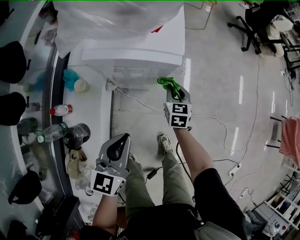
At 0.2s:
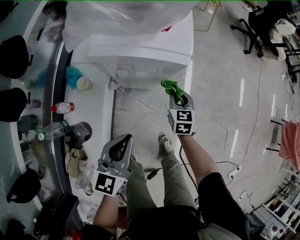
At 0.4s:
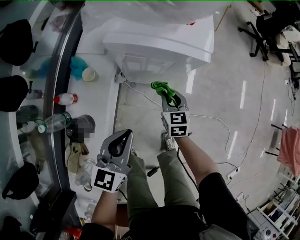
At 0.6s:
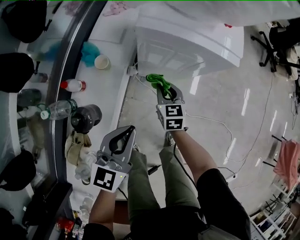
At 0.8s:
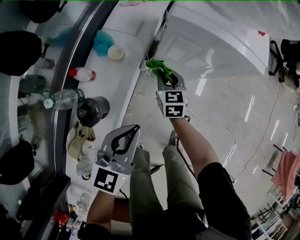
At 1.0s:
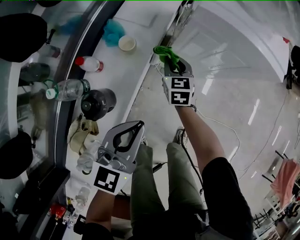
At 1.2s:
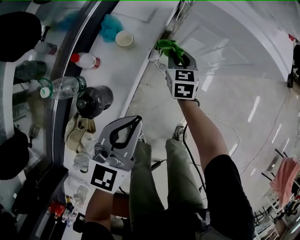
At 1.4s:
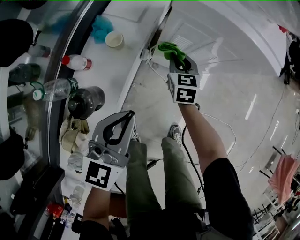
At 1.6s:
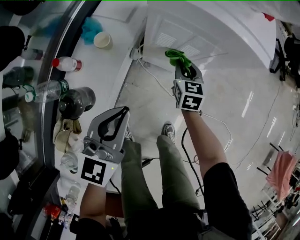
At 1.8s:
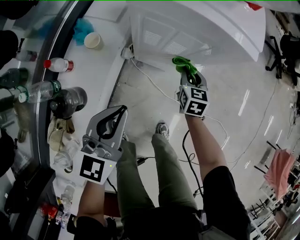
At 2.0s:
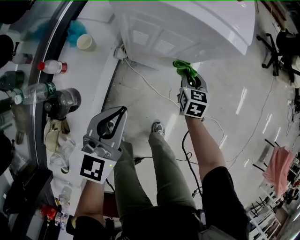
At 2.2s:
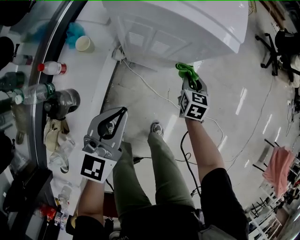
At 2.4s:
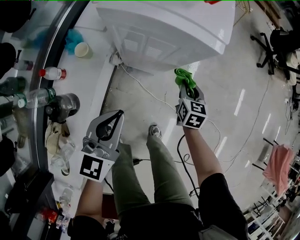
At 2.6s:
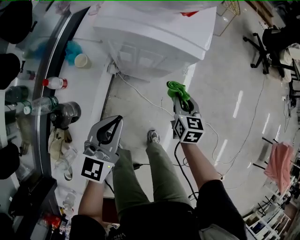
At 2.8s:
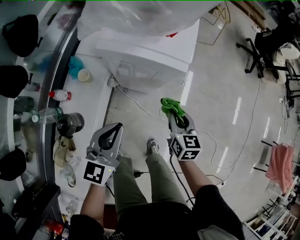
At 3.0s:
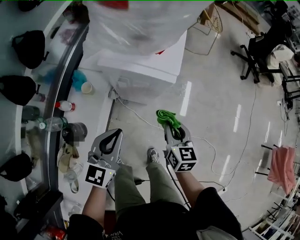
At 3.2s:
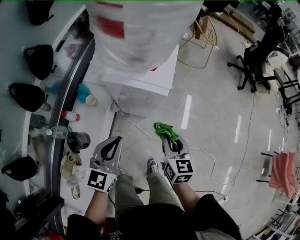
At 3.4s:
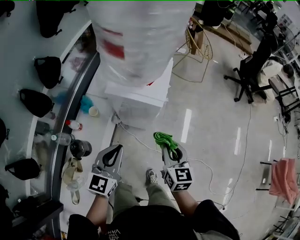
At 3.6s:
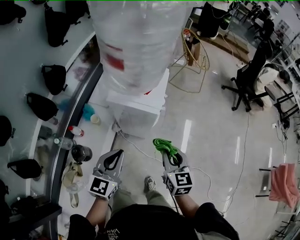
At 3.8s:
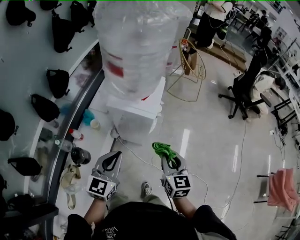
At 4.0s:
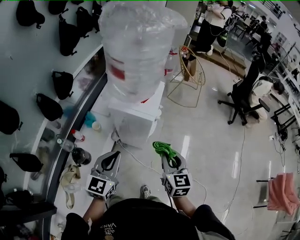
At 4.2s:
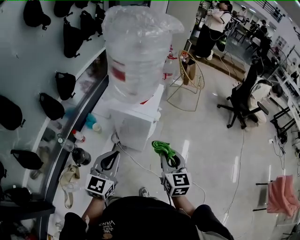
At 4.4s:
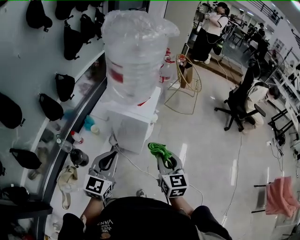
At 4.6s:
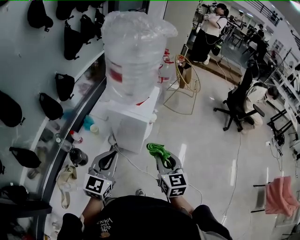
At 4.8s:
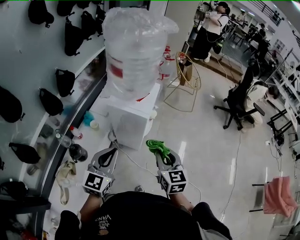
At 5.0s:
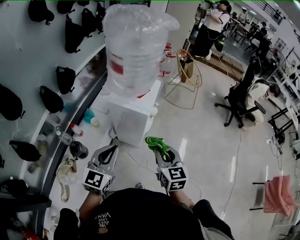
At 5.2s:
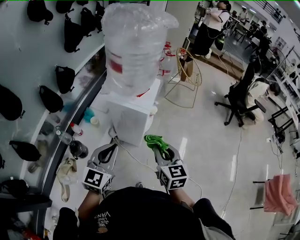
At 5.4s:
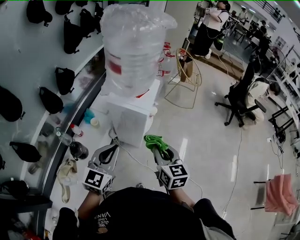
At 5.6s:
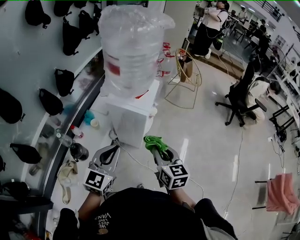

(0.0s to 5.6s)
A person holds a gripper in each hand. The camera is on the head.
0.0s - 1.4s: The left gripper travels to the left and downward by some 15 cm. The right gripper moves to the left, approximately 25 cm, and turns by roughly 20 degrees.
1.4s - 2.8s: The right gripper shifts some 30 cm to the right, upward and backward. The left gripper moves to the right and upward, about 15 cm.
2.8s - 4.2s: Both grippers travel together upward, some 25 cm.
4.2s - 5.6s: The grippers stay close to where they were, moving slightly.

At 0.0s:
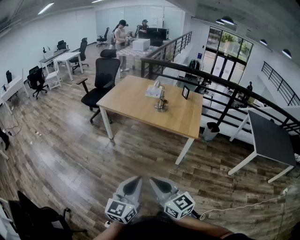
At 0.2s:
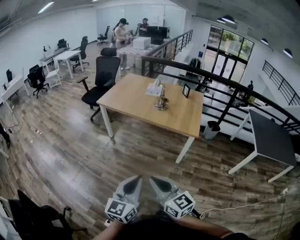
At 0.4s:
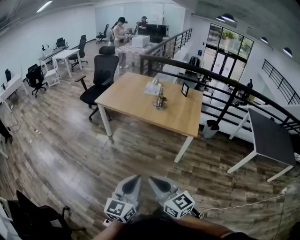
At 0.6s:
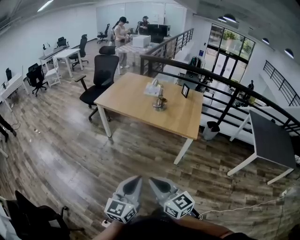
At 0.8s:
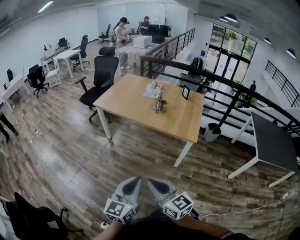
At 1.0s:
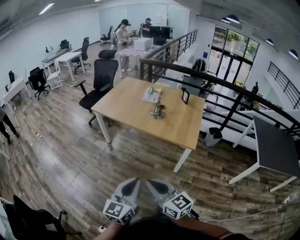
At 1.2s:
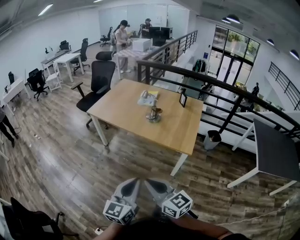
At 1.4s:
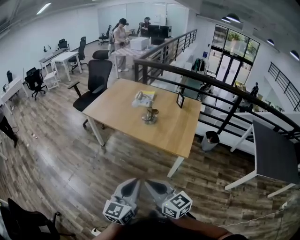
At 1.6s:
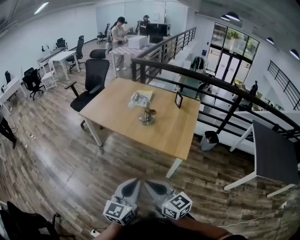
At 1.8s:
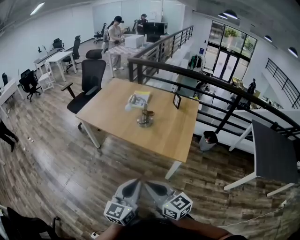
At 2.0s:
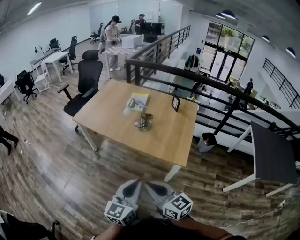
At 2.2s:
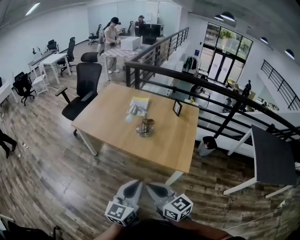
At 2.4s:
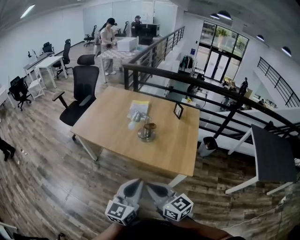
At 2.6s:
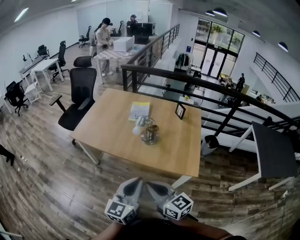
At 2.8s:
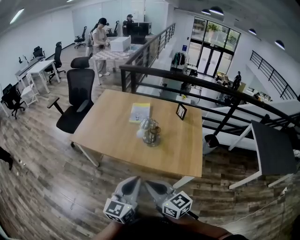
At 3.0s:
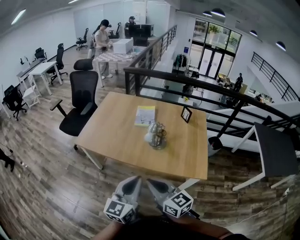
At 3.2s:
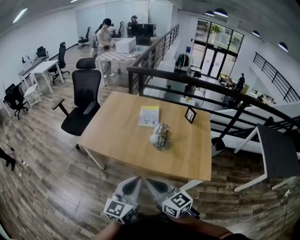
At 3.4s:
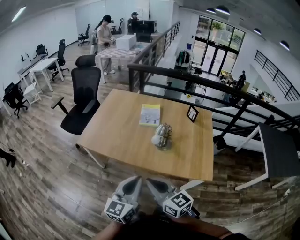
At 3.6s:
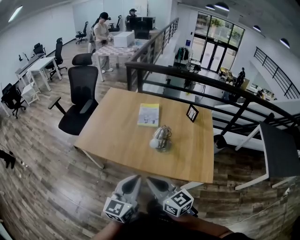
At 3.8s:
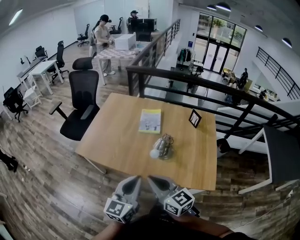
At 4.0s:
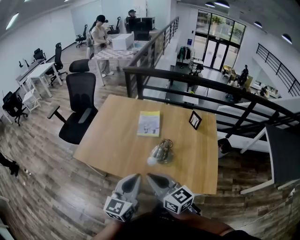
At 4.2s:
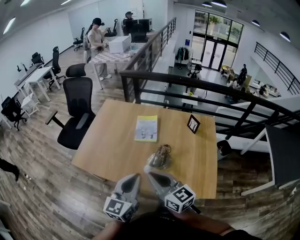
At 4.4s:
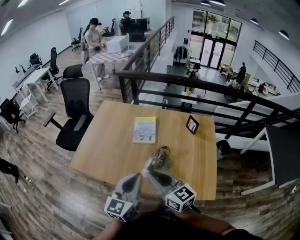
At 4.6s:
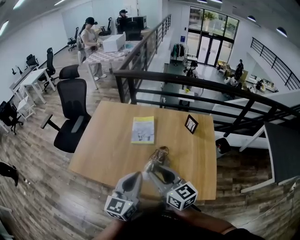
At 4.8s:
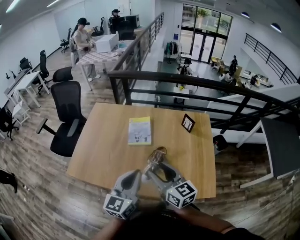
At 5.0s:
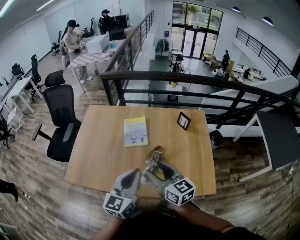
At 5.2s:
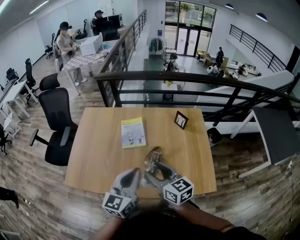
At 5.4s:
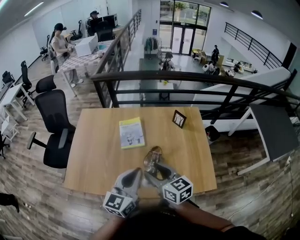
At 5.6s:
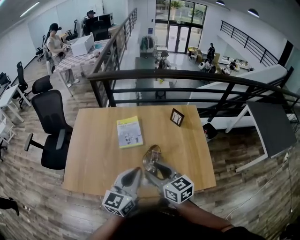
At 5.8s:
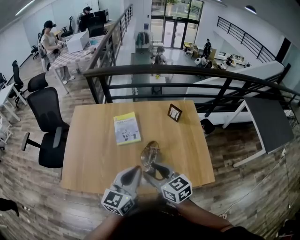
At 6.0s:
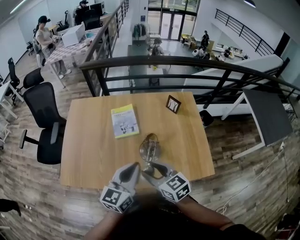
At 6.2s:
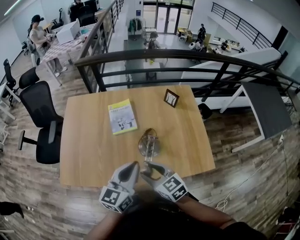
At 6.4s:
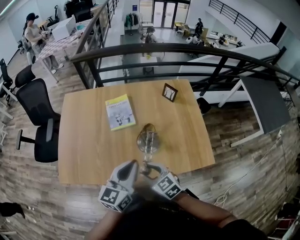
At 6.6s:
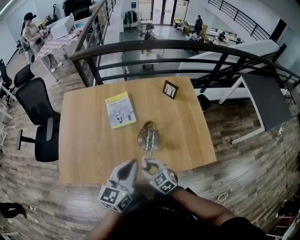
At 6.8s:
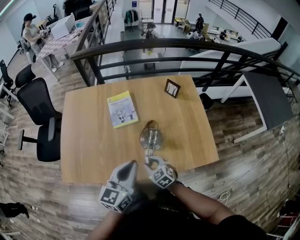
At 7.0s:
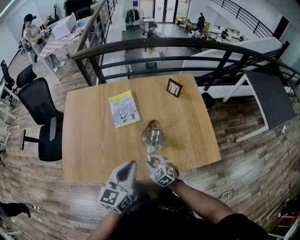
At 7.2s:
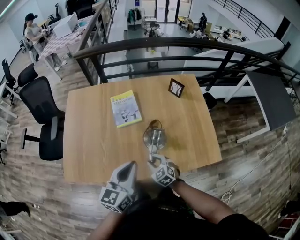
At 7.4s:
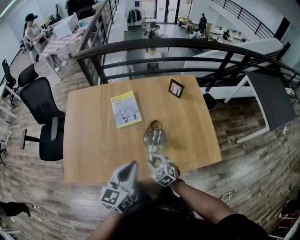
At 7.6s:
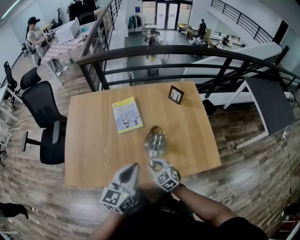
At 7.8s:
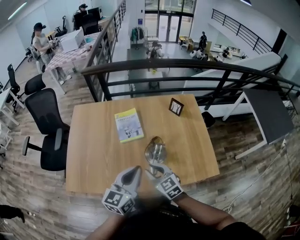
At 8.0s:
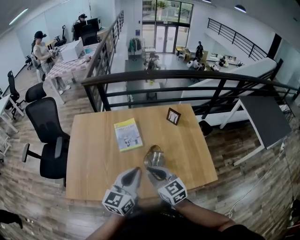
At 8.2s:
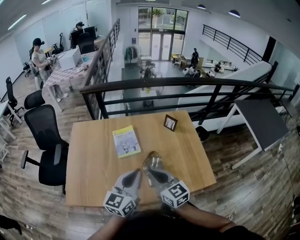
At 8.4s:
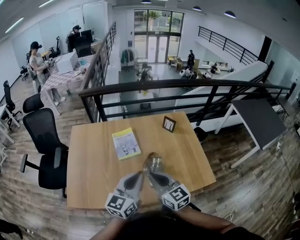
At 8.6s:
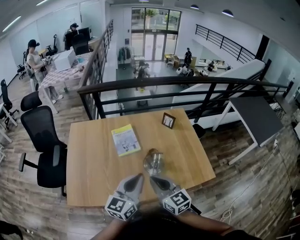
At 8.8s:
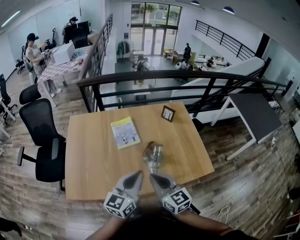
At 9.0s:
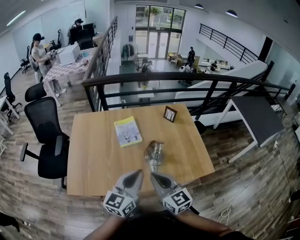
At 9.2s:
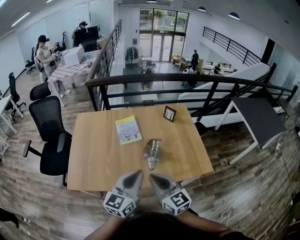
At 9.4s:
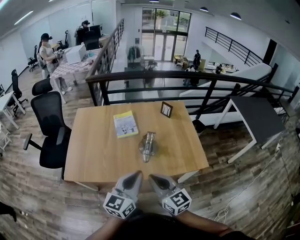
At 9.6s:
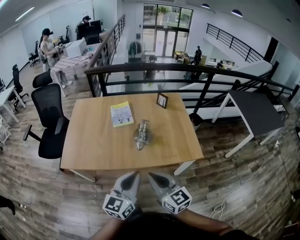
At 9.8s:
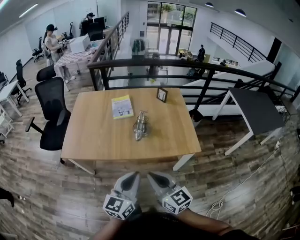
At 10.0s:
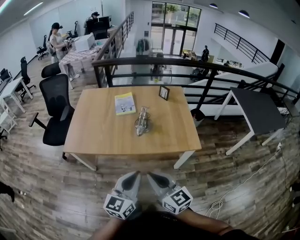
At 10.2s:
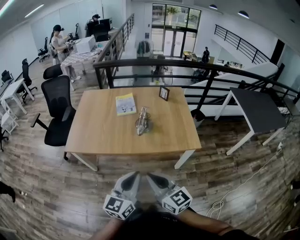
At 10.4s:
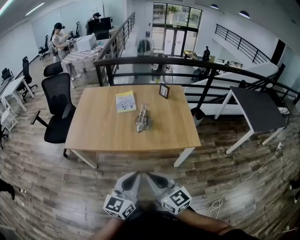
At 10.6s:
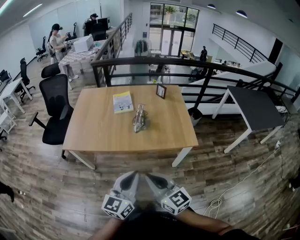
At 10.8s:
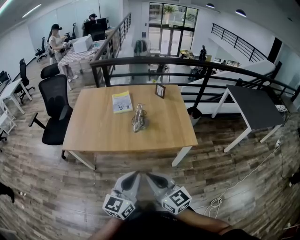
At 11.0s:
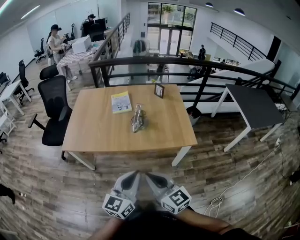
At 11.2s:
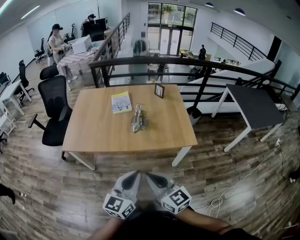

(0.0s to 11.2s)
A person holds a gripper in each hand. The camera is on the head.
0.0s - 1.6s: The left gripper shifts approximately 25 cm to the right and forward. The right gripper goes roughly 25 cm forward and to the right.
1.6s - 3.2s: The grippers both shift forward and to the left by about 30 cm.
3.2s - 4.8s: Both grippers move forward, some 25 cm. The right gripper opens its fingers.
4.8s - 6.4s: The left gripper rotates some 20 degrees. The right gripper travels downward by approximately 15 cm, and turns by some 30 degrees.
6.4s - 8.0s: The right gripper heads upward and forward, covering approximately 10 cm, changes its angle by about 20 degrees, and closes up.
8.0s - 9.6s: The two grippers go some 25 cm backward.
9.6s - 11.2s: Both grippers travel together backward, about 15 cm.

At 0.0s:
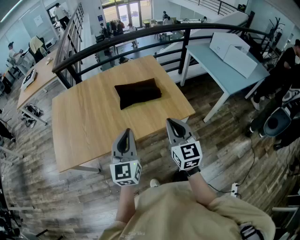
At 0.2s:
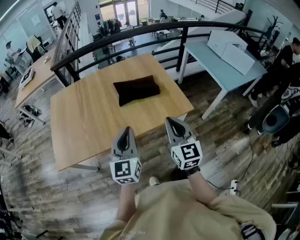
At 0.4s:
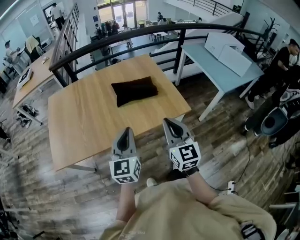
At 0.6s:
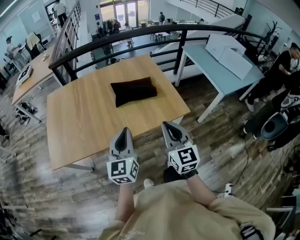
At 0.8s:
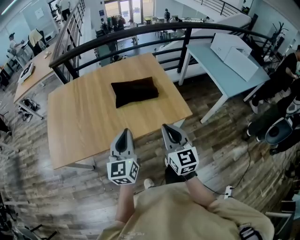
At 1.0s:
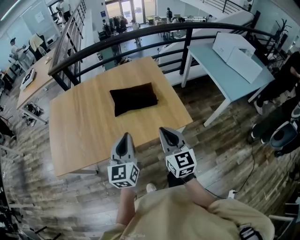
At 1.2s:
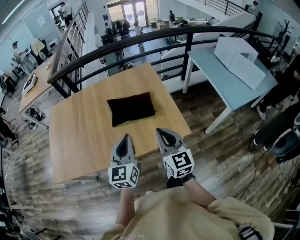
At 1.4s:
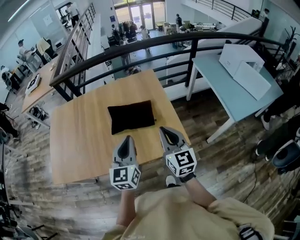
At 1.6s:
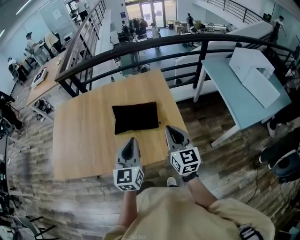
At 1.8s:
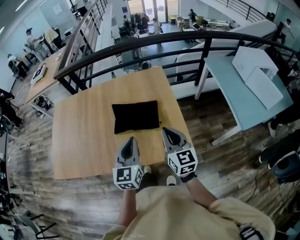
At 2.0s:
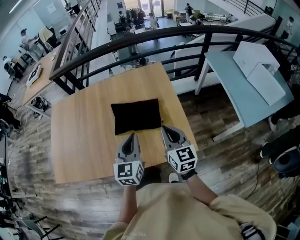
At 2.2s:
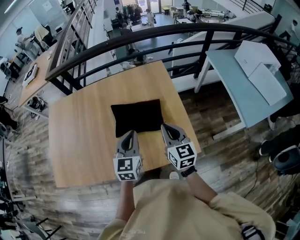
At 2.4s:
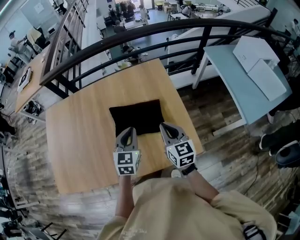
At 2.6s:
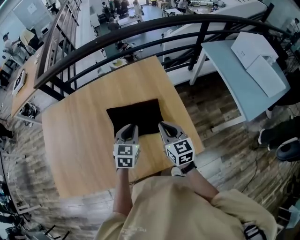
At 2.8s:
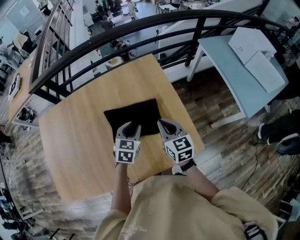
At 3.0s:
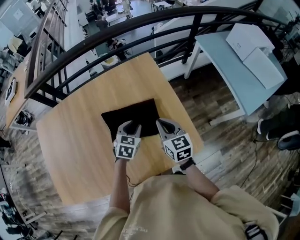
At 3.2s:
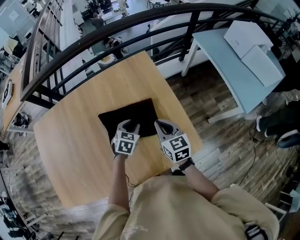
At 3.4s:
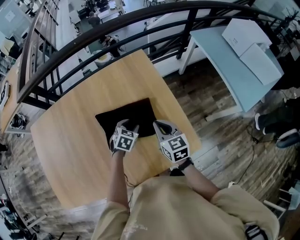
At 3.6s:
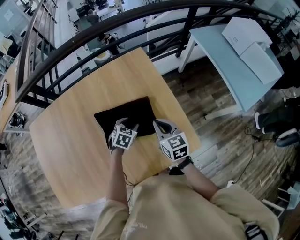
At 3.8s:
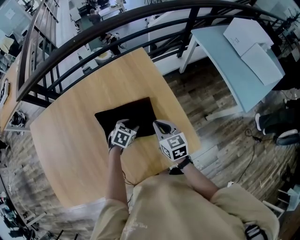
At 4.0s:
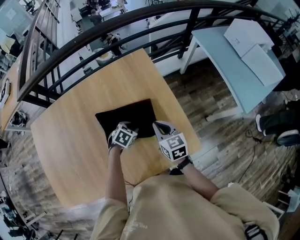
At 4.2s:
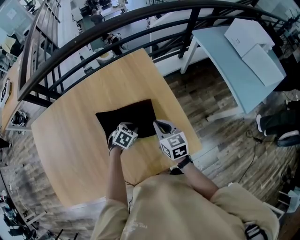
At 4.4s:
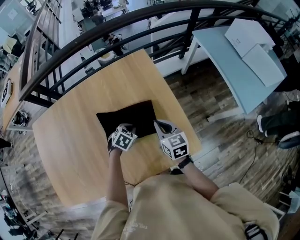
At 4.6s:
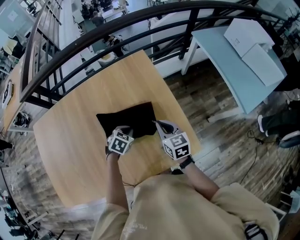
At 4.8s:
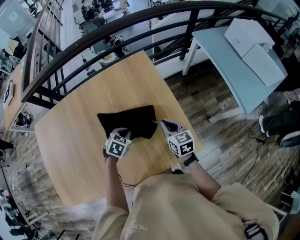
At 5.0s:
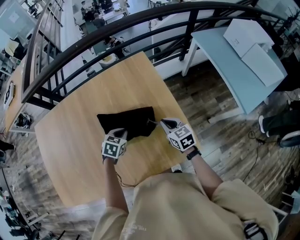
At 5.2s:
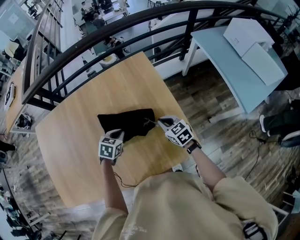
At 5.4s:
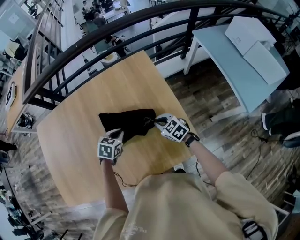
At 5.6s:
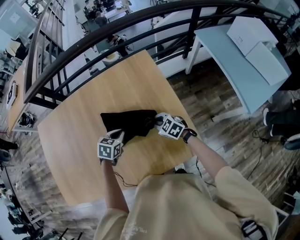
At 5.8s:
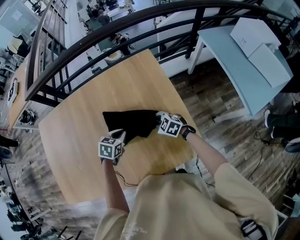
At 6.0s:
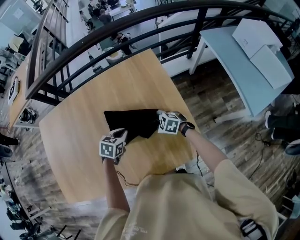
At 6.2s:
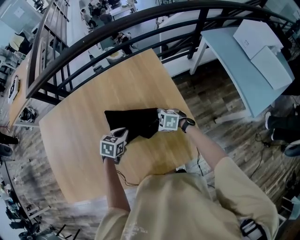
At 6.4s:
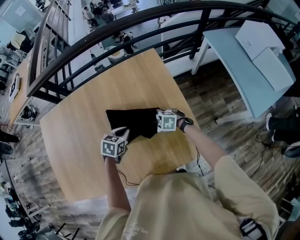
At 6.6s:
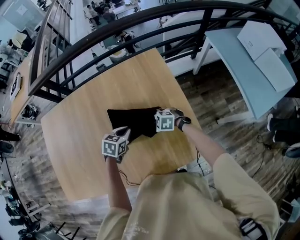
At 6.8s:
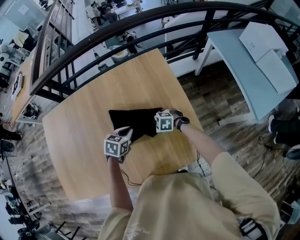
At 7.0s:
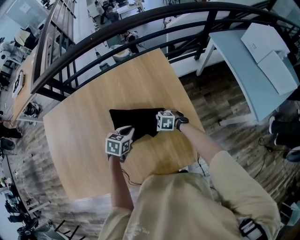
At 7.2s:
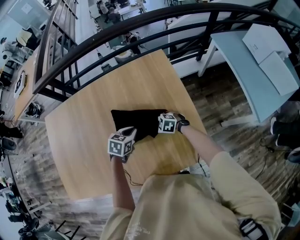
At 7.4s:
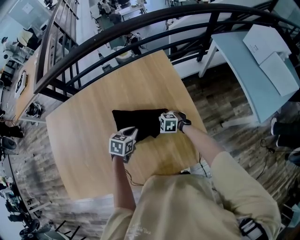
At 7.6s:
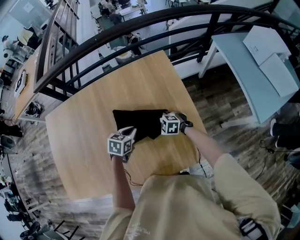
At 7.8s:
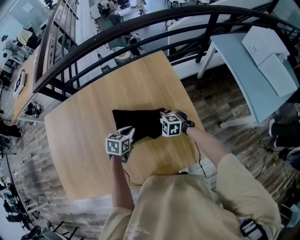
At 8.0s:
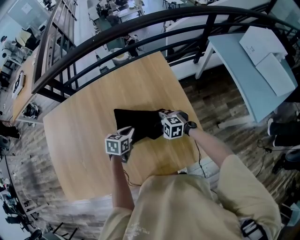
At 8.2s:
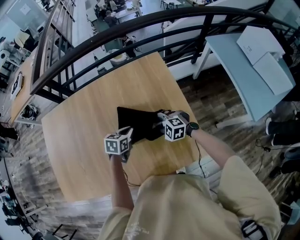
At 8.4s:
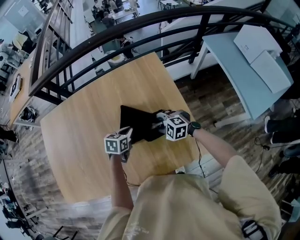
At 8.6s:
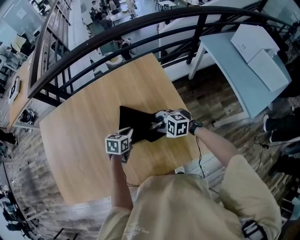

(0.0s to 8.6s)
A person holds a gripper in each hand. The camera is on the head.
0.0s - 1.4s: The two grippers go some 20 cm forward and to the right.
1.4s - 2.8s: Both grippers move forward and downward, approximately 30 cm. The left gripper tips its fingers downward by roughly 30 degrees, and opens.
2.8s - 4.4s: The right gripper goes roughly 5 cm downward. The left gripper goes roughly 15 cm downward, changes its angle by some 30 degrees, and closes up.
4.4s - 5.8s: The left gripper goes about 10 cm to the left and upward, and changes its angle by approximately 20 degrees. The right gripper travels downward and to the left by roughly 10 cm, and swivels about 50 degrees.
5.8s - 7.2s: The right gripper goes about 5 cm downward, and opens.
7.2s - 8.6s: The right gripper heads upward, covering roughly 10 cm.
